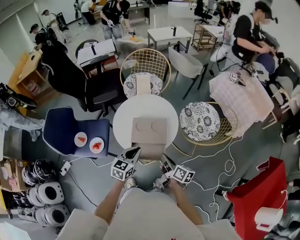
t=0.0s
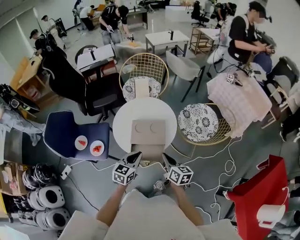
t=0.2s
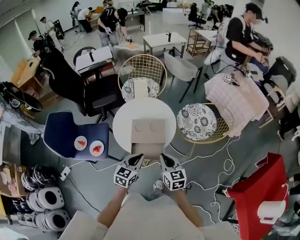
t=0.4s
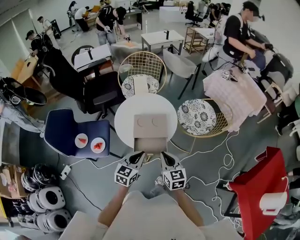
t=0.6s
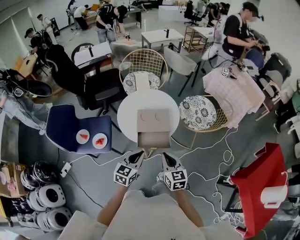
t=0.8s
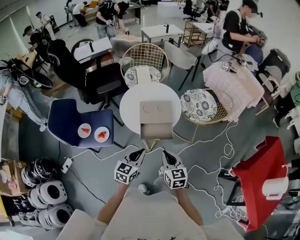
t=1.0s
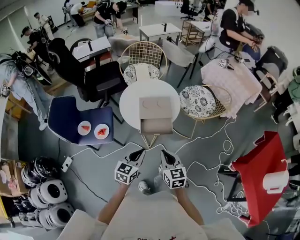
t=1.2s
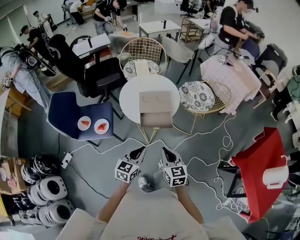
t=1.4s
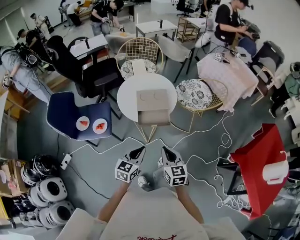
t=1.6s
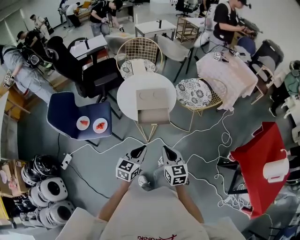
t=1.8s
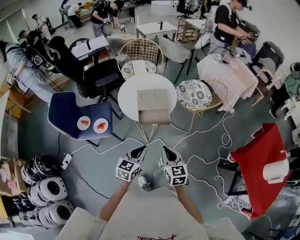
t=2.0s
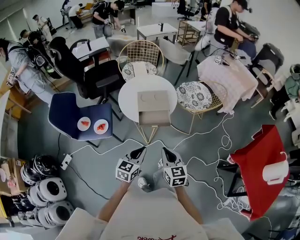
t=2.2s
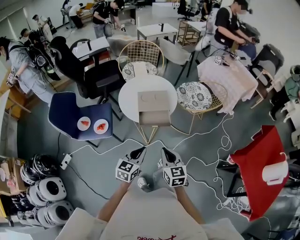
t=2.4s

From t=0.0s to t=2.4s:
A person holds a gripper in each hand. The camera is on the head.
From t=0.0s to t=1.2s: The two grippers go about 20 cm backward. The right gripper rolls counterclockwise, seen from behind, by some 50 degrees.
From t=1.2s to t=2.4s: The right gripper heads backward, covering some 5 cm; the left gripper ends up approximately 5 cm from where it was.

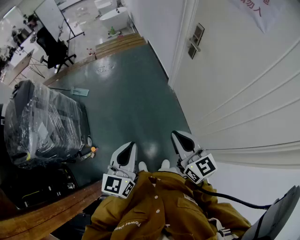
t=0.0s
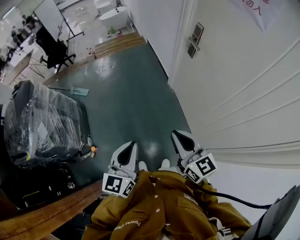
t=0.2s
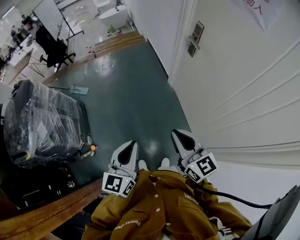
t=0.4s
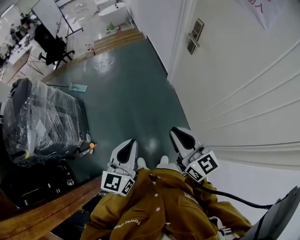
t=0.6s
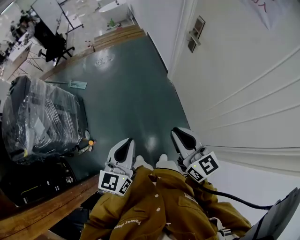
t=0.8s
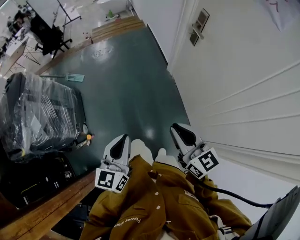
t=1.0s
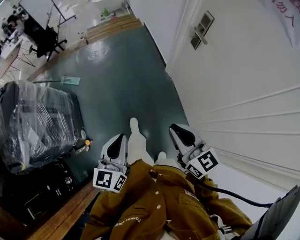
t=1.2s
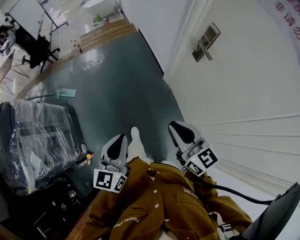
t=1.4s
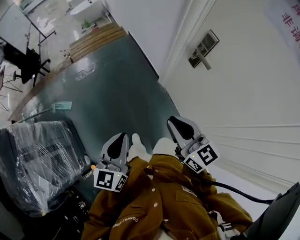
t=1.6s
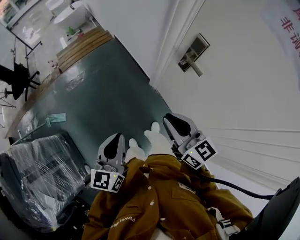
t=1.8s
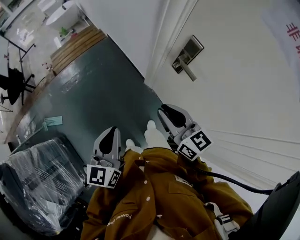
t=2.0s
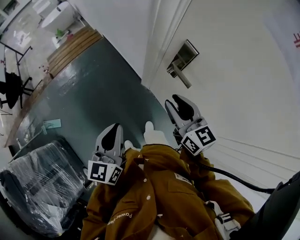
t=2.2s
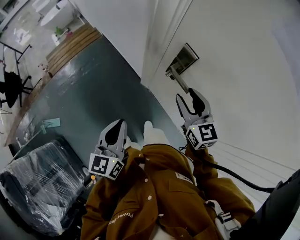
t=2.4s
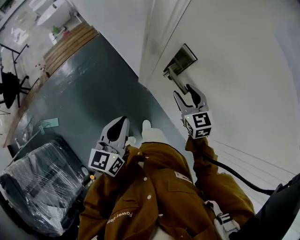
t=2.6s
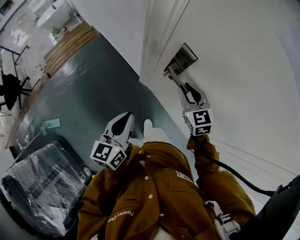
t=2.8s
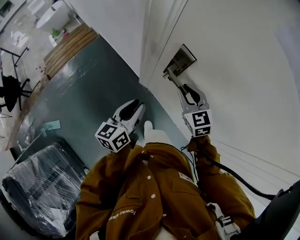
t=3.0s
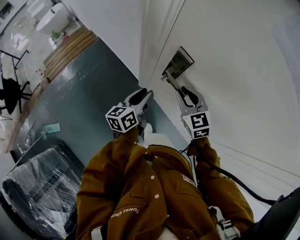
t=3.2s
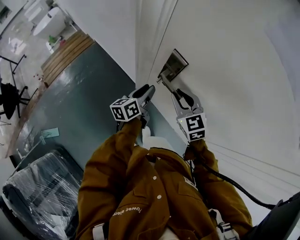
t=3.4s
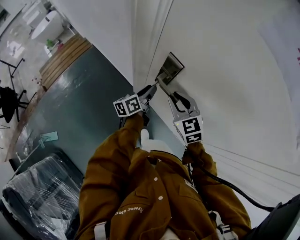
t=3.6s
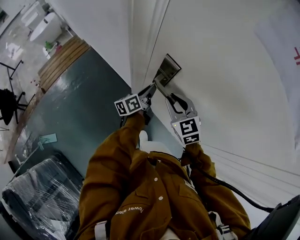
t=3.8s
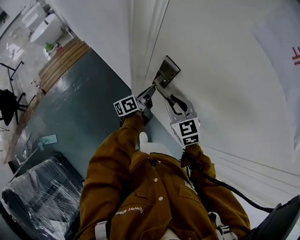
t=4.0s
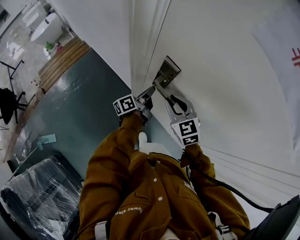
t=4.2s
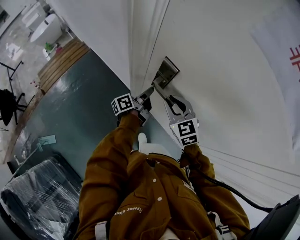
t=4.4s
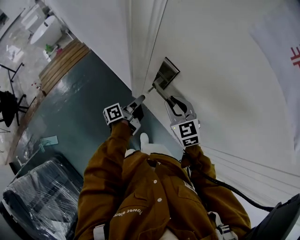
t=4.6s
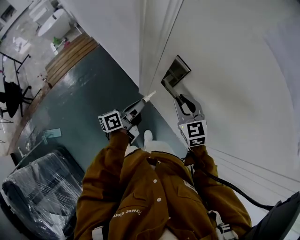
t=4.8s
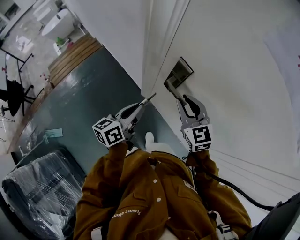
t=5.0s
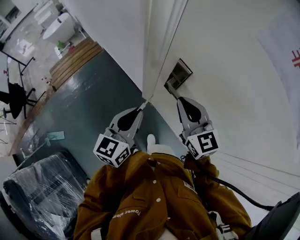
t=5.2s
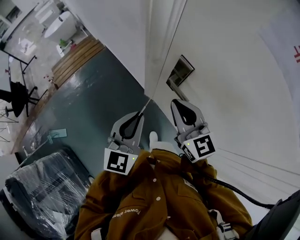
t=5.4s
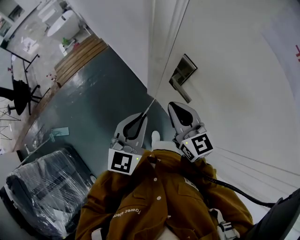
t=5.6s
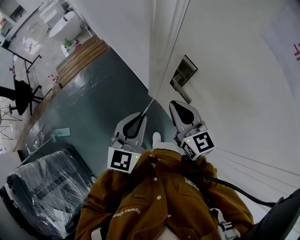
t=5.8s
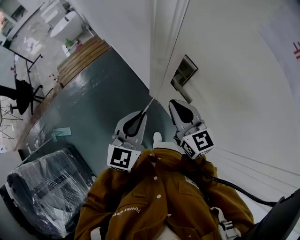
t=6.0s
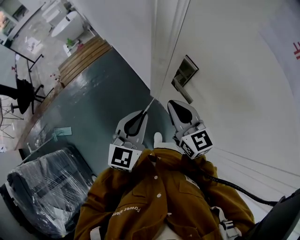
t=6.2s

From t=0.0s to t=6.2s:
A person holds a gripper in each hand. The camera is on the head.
From t=0.0s to t=1.6s: The grippers both shift forward by some 35 cm.
From t=1.6s to t=3.2s: The left gripper shifts by approximately 50 cm, changes its angle by some 40 degrees, and opens up; the right gripper moves some 40 cm, rotates about 40 degrees, and opens and closes again.
From t=3.2s to t=4.6s: The left gripper rotates around the line of its fingers by roughly 40 degrees, counterclockwise from behind, and closes its fingers.
From t=4.6s to t=6.2s: The right gripper goes roughly 15 cm upward, to the left and backward, swivels about 30 degrees, and closes, while the left gripper is displaced upward and backward by some 25 cm, and twists about 80 degrees clockwise, seen from behind.

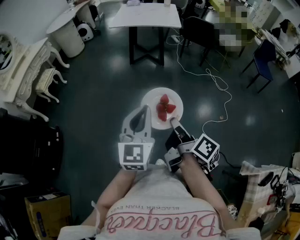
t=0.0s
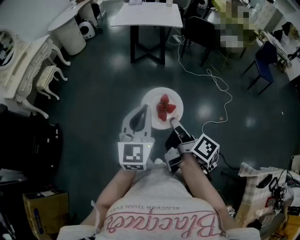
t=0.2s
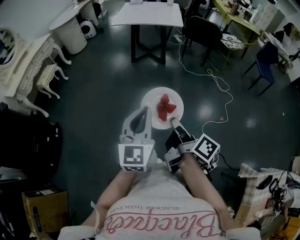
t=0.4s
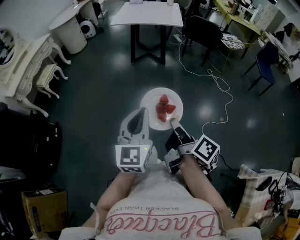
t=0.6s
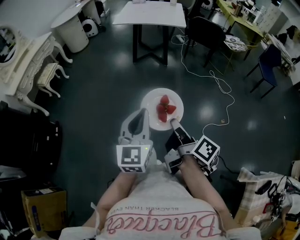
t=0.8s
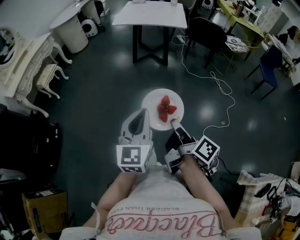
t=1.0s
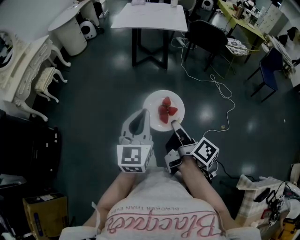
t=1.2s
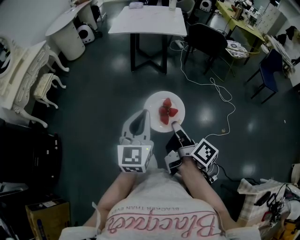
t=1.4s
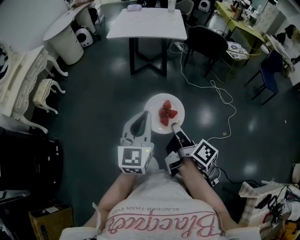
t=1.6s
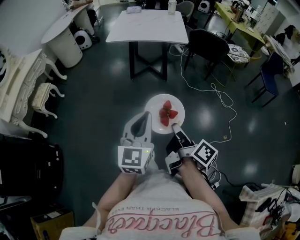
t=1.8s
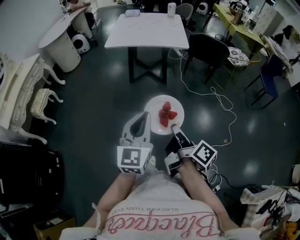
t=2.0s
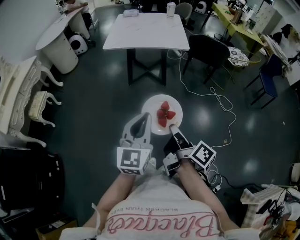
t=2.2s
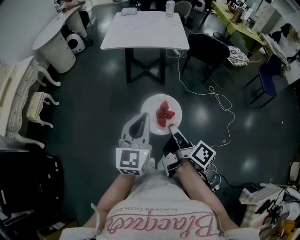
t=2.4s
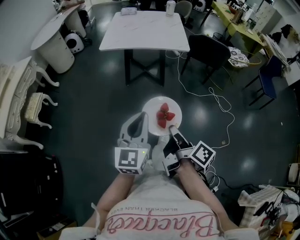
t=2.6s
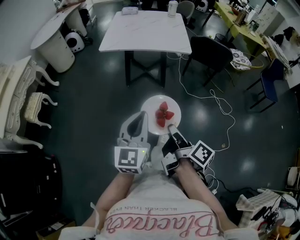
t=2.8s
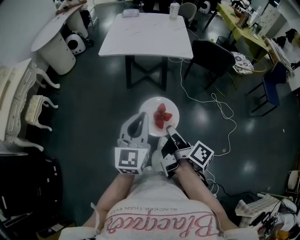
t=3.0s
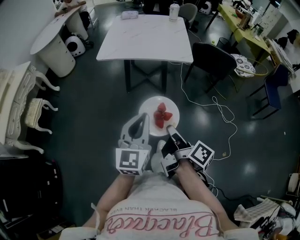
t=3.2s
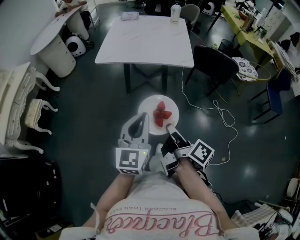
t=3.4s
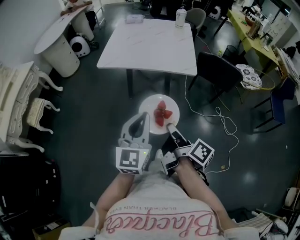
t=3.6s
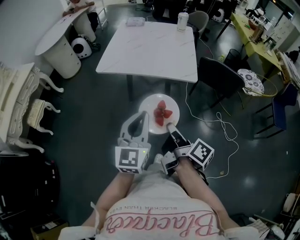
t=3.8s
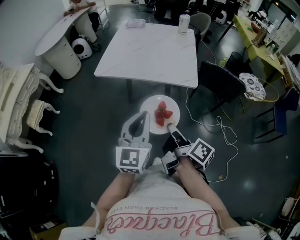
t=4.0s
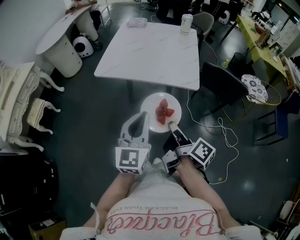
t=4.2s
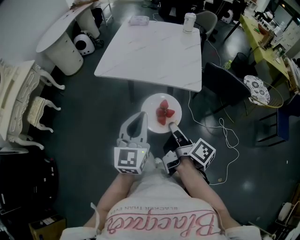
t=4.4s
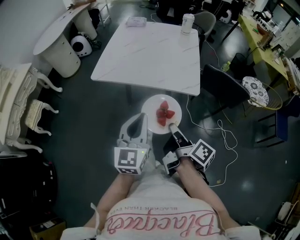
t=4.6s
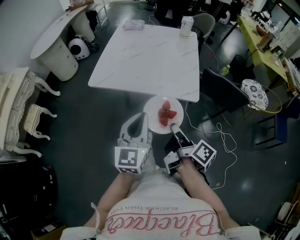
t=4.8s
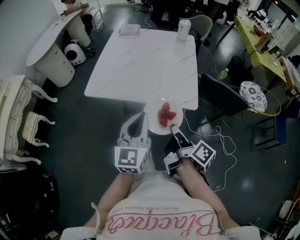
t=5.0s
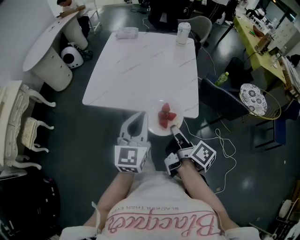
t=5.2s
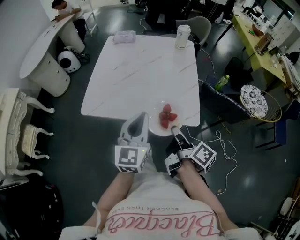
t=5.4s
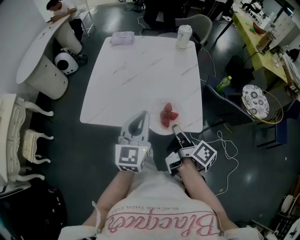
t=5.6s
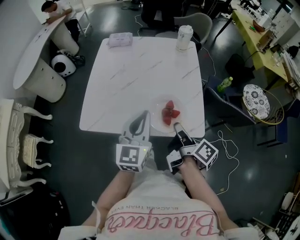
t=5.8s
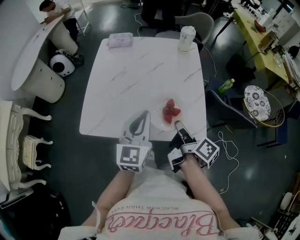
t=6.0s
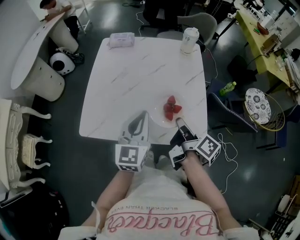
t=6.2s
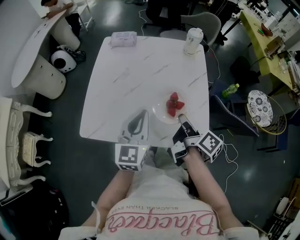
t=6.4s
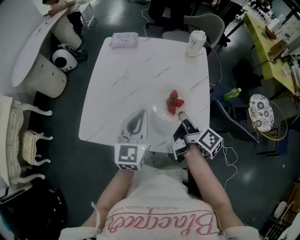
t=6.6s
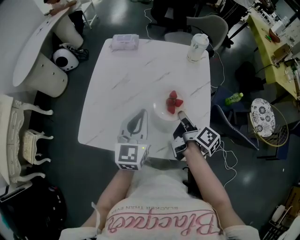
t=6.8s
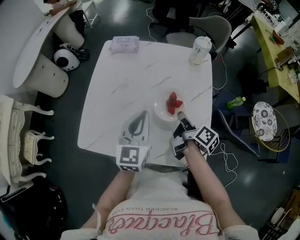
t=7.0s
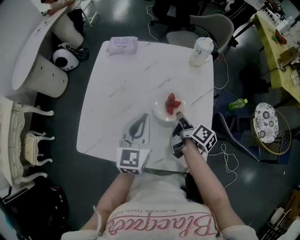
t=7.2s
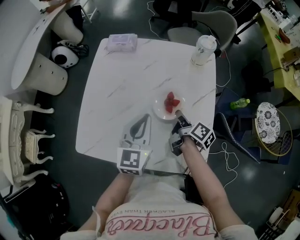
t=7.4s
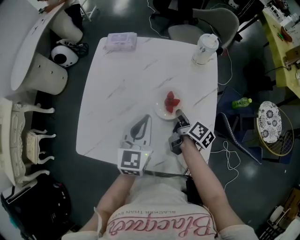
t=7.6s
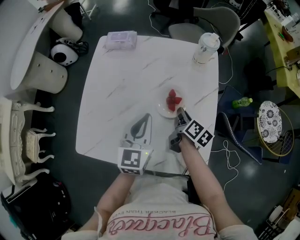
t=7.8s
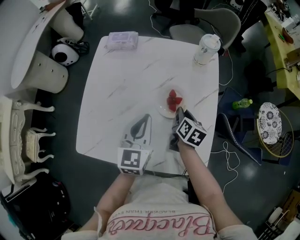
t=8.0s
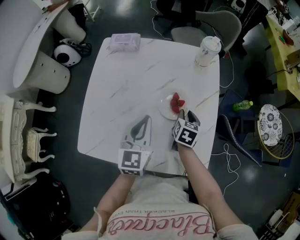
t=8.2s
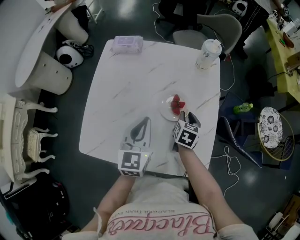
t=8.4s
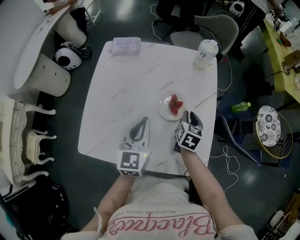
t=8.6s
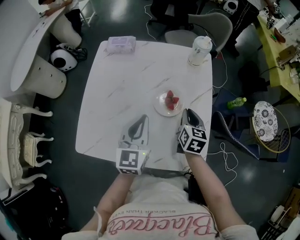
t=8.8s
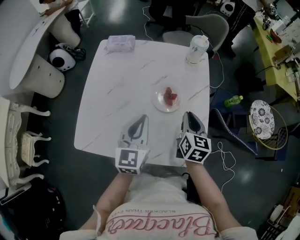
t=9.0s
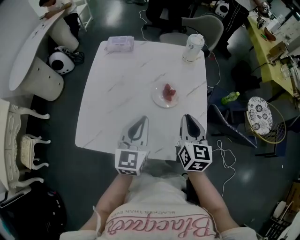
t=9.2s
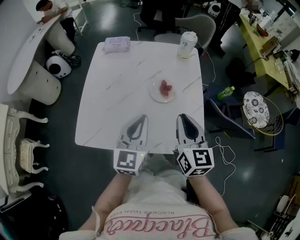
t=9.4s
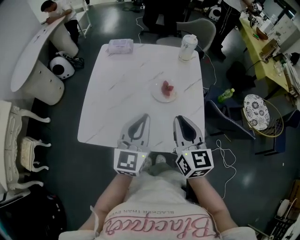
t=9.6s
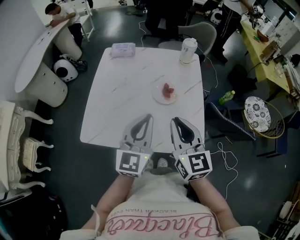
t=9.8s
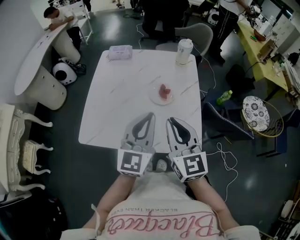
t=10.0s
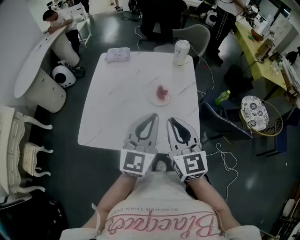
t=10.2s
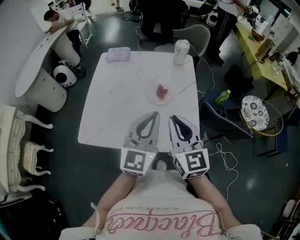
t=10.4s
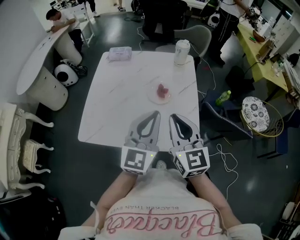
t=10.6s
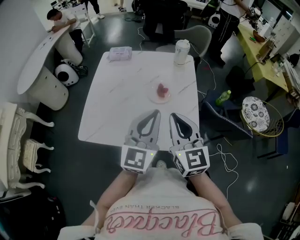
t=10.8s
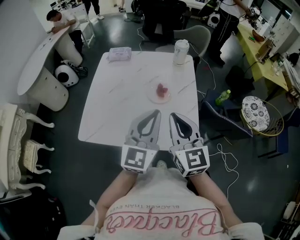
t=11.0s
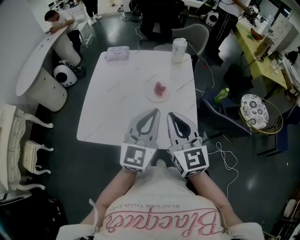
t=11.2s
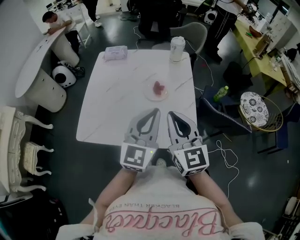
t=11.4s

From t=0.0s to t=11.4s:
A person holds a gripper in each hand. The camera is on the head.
From t=0.0s to t=1.4s: Both grippers travel together forward, some 15 cm.
From t=1.4s to t=2.8s: Both grippers travel together forward, about 25 cm.
From t=2.8s to t=4.2s: The two grippers go about 30 cm forward.
From t=4.2s to t=5.6s: The grippers both shift forward by about 30 cm.
From t=5.6s to t=7.2s: Both grippers move forward, some 30 cm.
From t=7.2s to t=8.6s: The right gripper shifts by roughly 5 cm, and rotates around the line of its fingers by roughly 50 degrees, counterclockwise from behind.
From t=8.6s to t=10.0s: The right gripper shifts roughly 35 cm upward and backward, and angles its fingers upward, by approximately 30 degrees, while the left gripper moves backward and upward, roughly 20 cm, and rotates approximately 20 degrees.
From t=10.0s to t=11.4s: The left gripper moves to the right, some 5 cm.

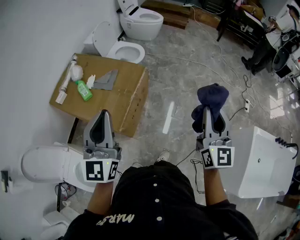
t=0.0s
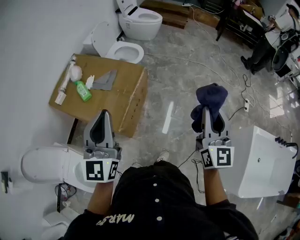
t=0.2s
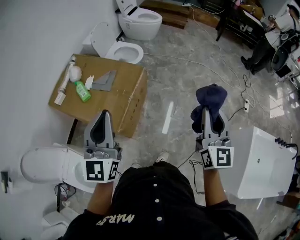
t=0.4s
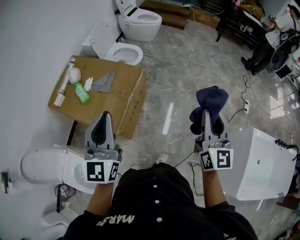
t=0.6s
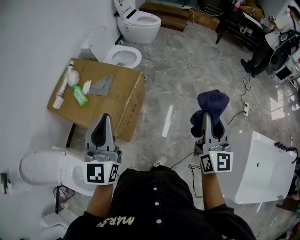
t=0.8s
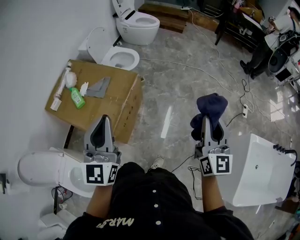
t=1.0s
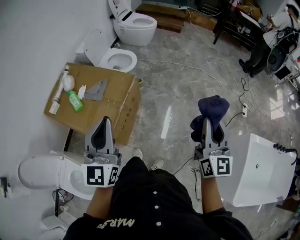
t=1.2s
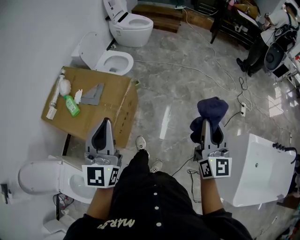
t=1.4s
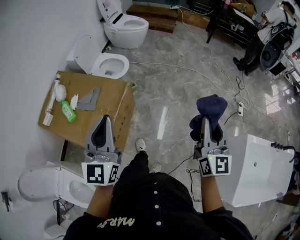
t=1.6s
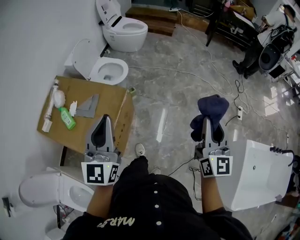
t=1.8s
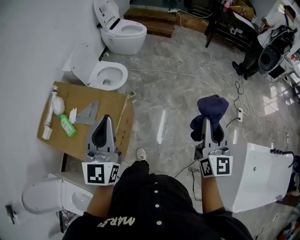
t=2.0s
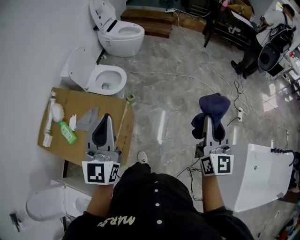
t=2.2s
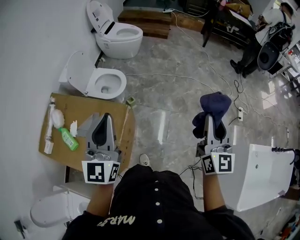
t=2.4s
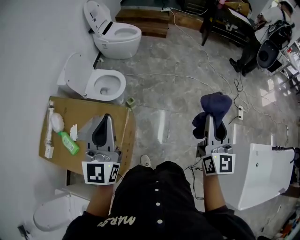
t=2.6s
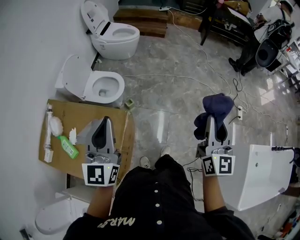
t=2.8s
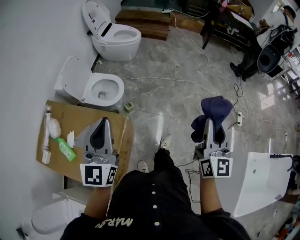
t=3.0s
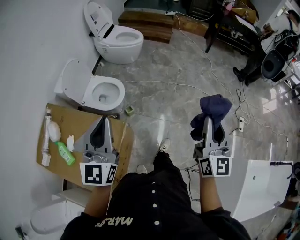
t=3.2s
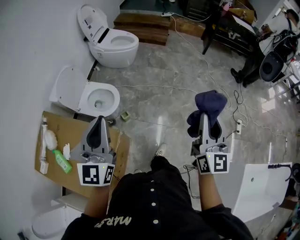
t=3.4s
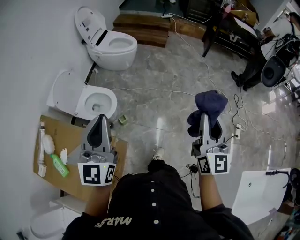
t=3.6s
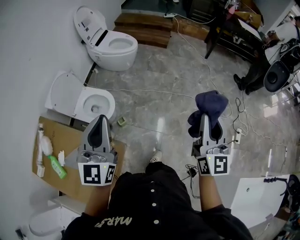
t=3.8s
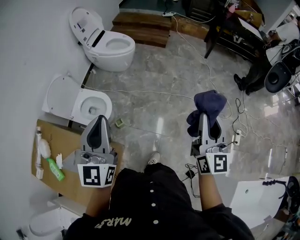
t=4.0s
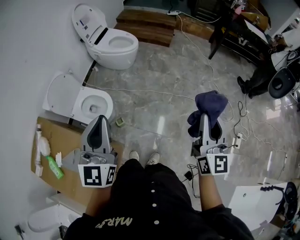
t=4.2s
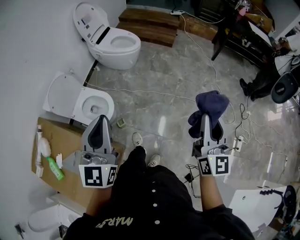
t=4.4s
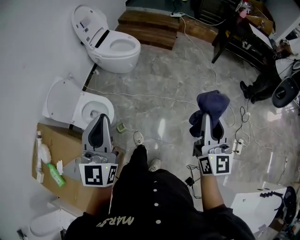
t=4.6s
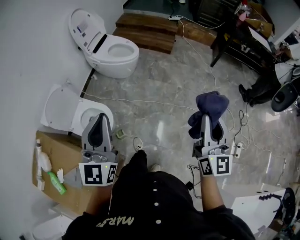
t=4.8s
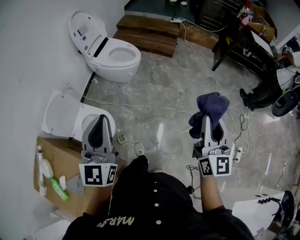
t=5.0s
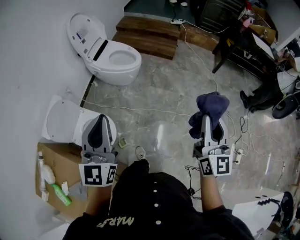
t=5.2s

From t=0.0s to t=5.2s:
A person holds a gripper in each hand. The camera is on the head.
From t=0.0s to t=1.8s: The two grippers go roughly 20 cm forward and to the right.
From t=1.8s to t=3.4s: The two grippers go roughly 30 cm forward.
From t=3.4s to t=5.2s: The two grippers go some 40 cm forward.
